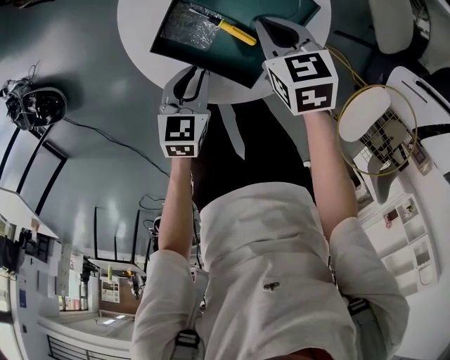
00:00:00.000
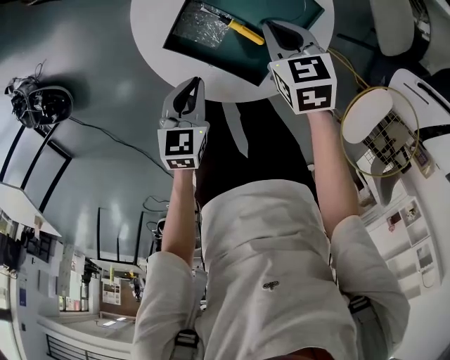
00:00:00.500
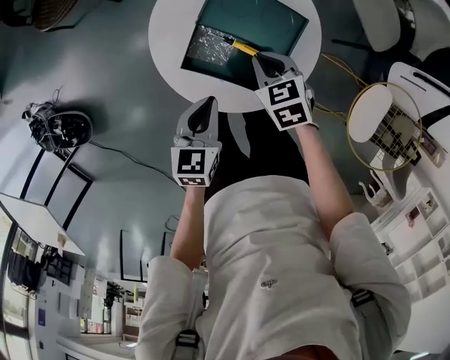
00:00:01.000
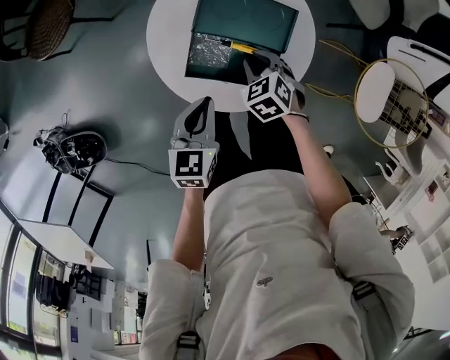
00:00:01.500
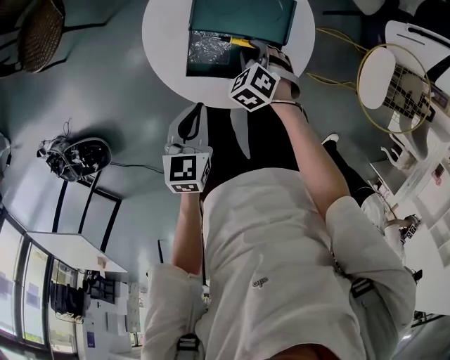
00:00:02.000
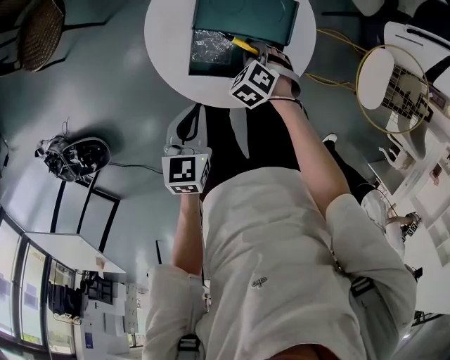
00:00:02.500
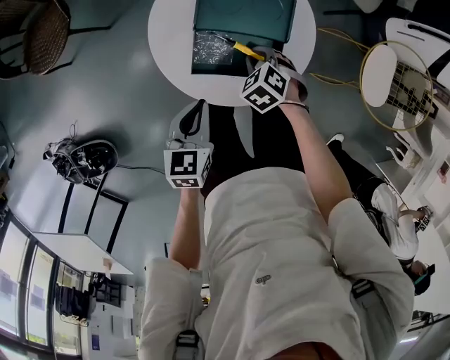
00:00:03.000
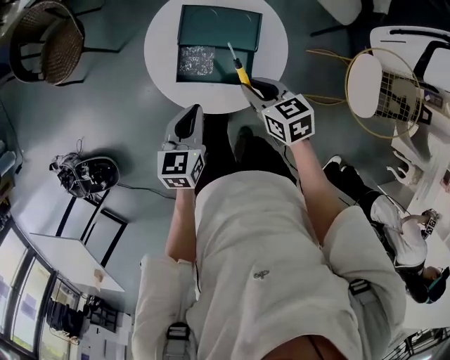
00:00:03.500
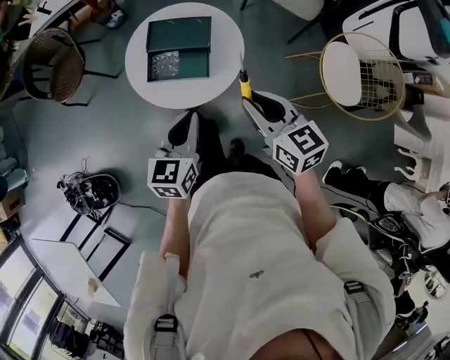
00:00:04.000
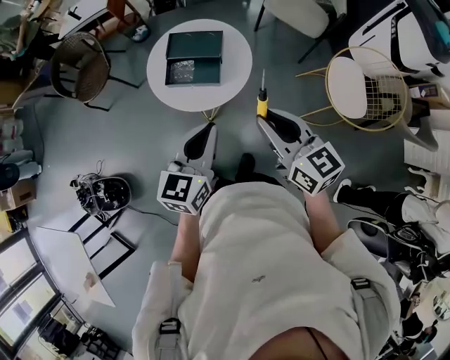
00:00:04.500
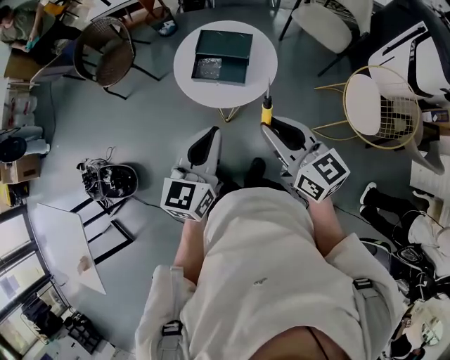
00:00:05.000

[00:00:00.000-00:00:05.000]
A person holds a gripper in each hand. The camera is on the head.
00:00:00.000 to 00:00:02.500: The left gripper shifts some 10 cm upward. The right gripper goes about 5 cm downward, and swivels about 40 degrees.
00:00:02.500 to 00:00:05.000: Both grippers travel together upward, approximately 35 cm. The left gripper rotates some 30 degrees, while the right gripper tips its fingers upward by approximately 60 degrees.

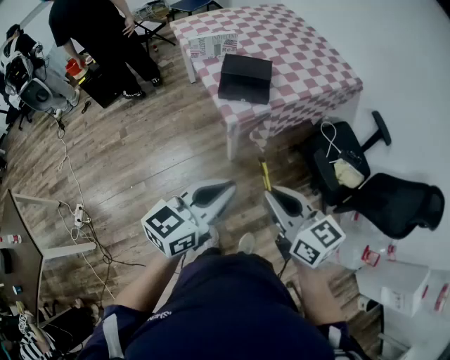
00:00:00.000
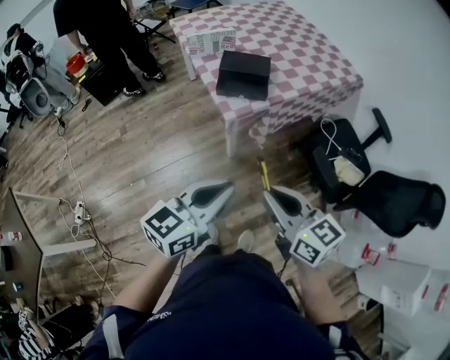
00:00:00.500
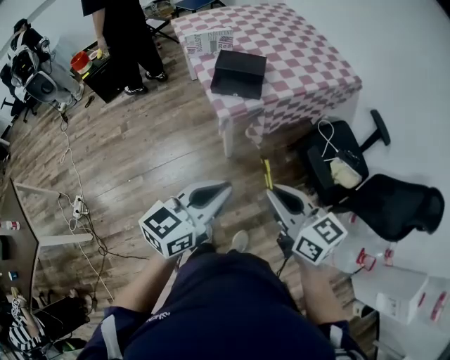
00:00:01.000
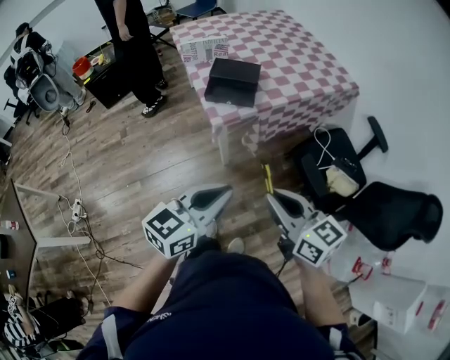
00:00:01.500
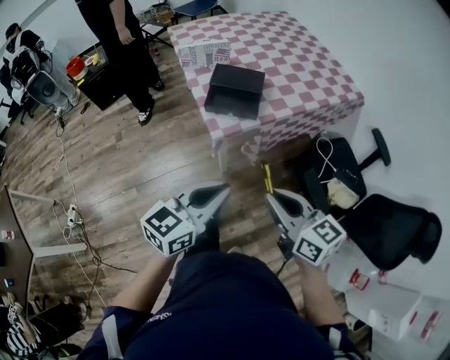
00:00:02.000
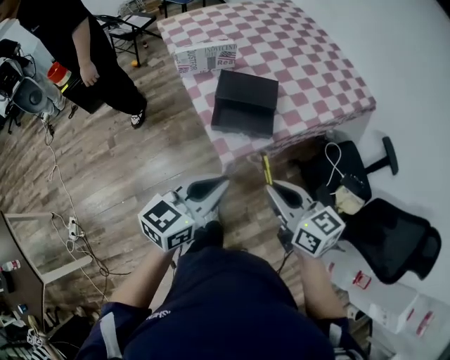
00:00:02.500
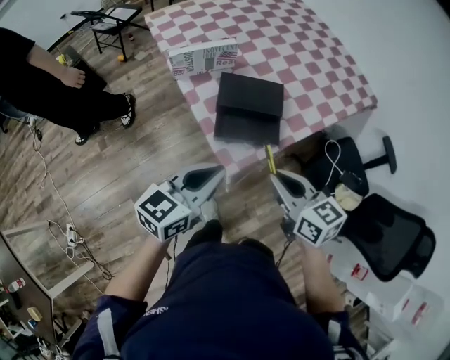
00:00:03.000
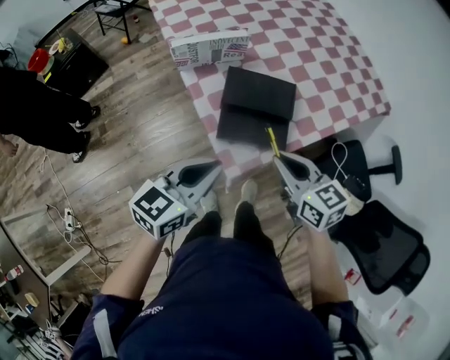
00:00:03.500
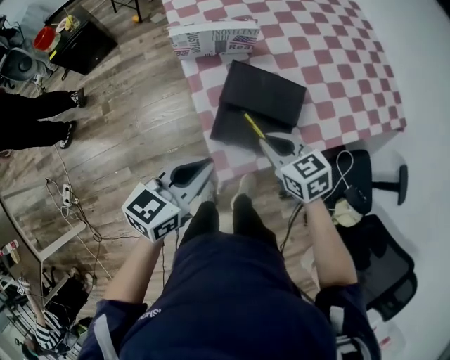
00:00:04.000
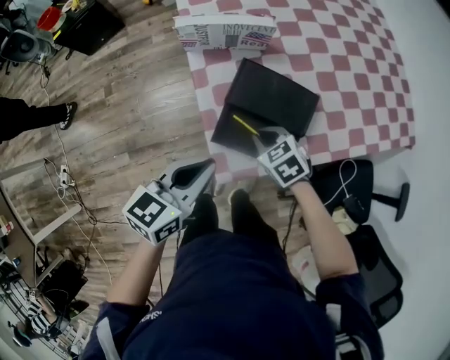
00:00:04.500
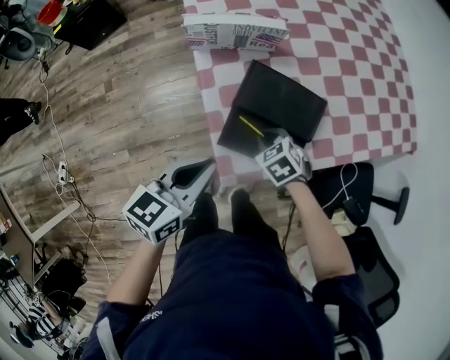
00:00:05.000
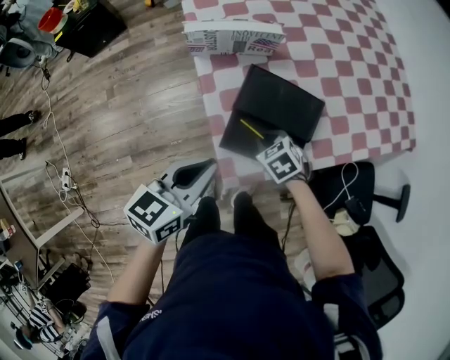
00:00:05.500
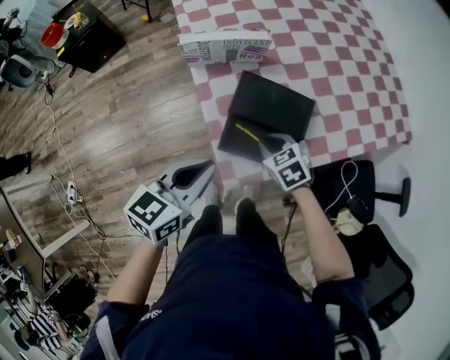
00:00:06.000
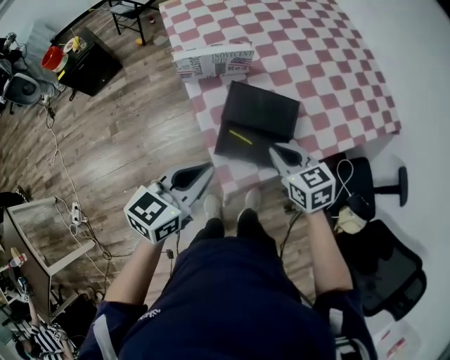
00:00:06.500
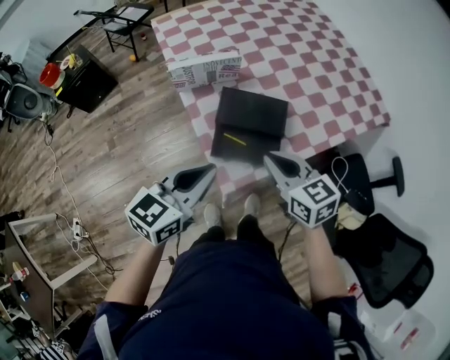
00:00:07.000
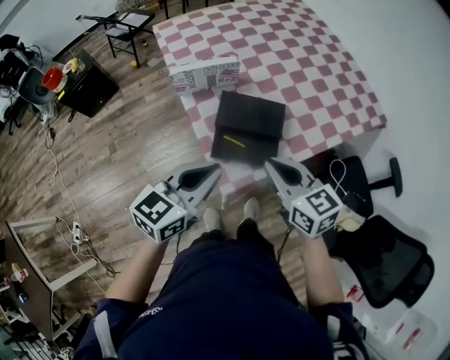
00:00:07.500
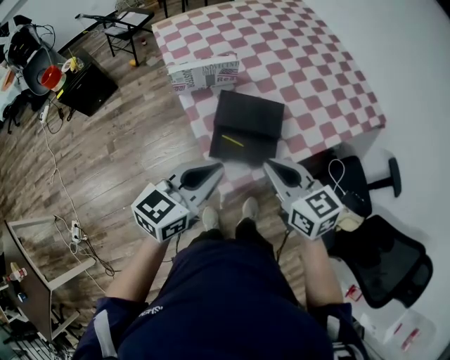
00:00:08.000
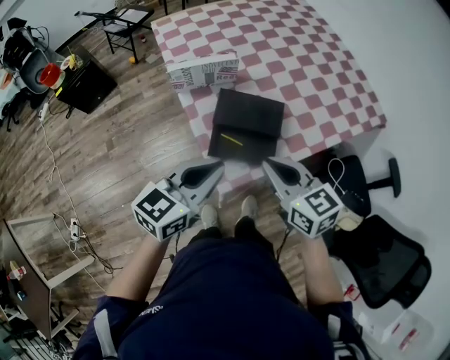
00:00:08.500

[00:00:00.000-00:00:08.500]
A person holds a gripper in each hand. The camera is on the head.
00:00:00.000 to 00:00:02.000: Both grippers move forward and to the right, about 10 cm.
00:00:02.000 to 00:00:04.000: The right gripper goes some 40 cm forward and downward, and swivels some 30 degrees, while the left gripper moves forward, approximately 35 cm.
00:00:04.000 to 00:00:06.500: The right gripper reaches roughly 15 cm downward, then returns.
00:00:06.500 to 00:00:08.500: The left gripper changes place by approximately 5 cm, while the right gripper is displaced upward and backward by some 15 cm.

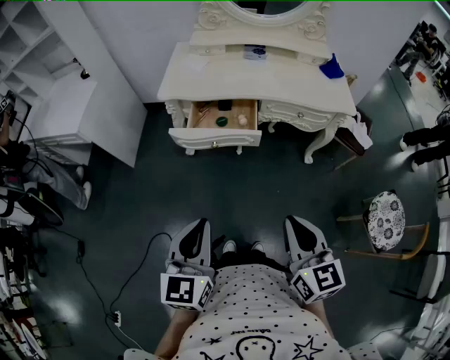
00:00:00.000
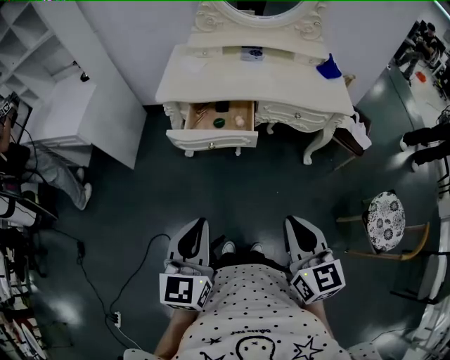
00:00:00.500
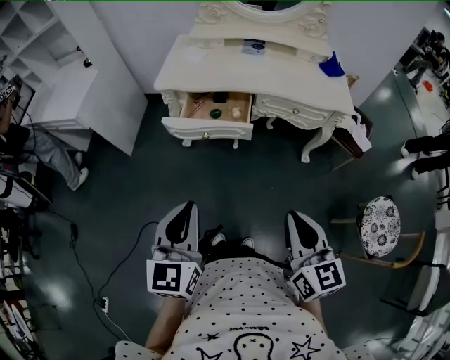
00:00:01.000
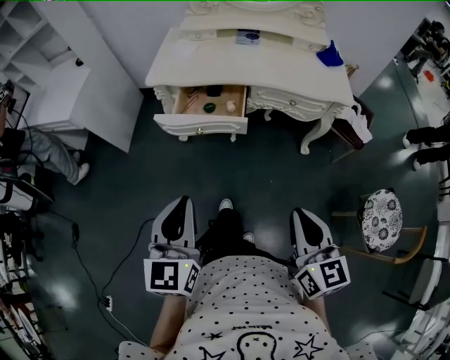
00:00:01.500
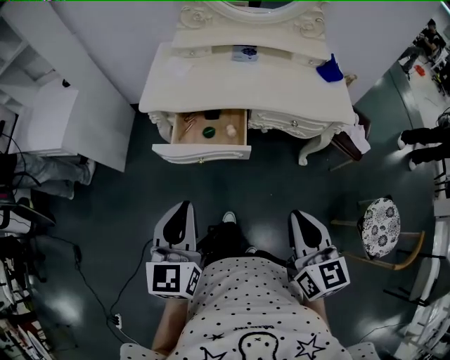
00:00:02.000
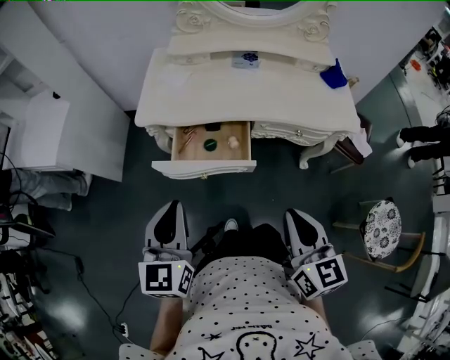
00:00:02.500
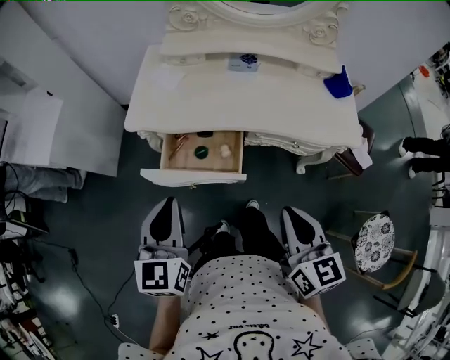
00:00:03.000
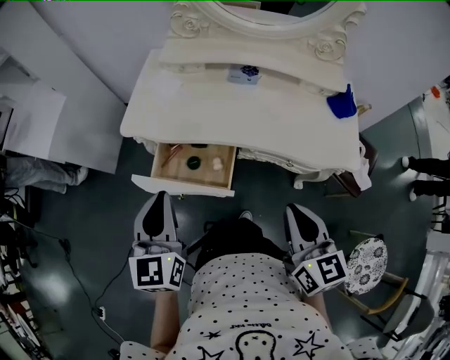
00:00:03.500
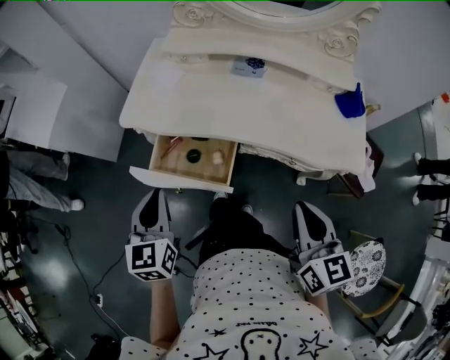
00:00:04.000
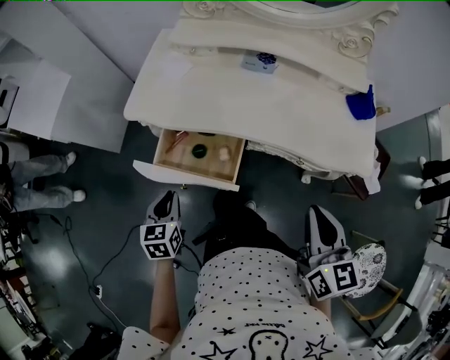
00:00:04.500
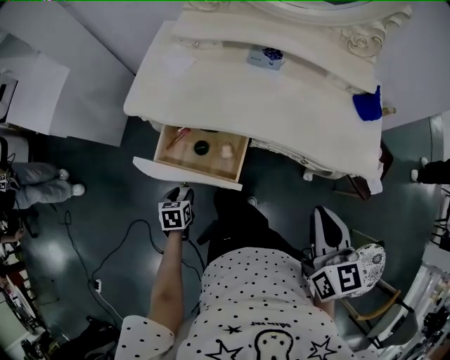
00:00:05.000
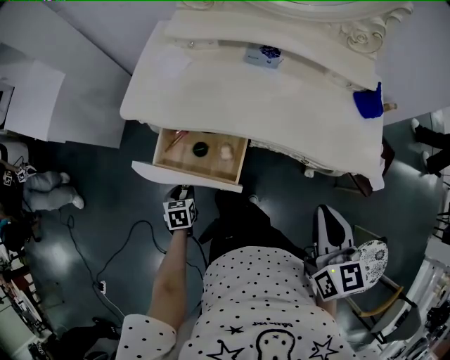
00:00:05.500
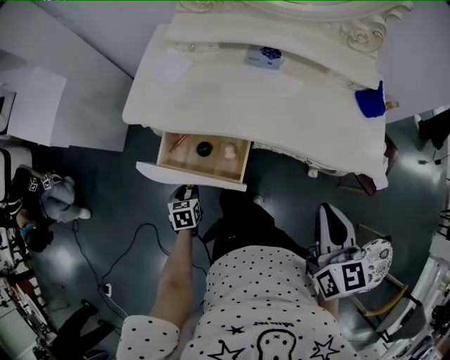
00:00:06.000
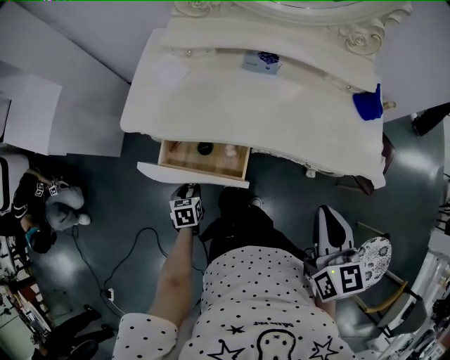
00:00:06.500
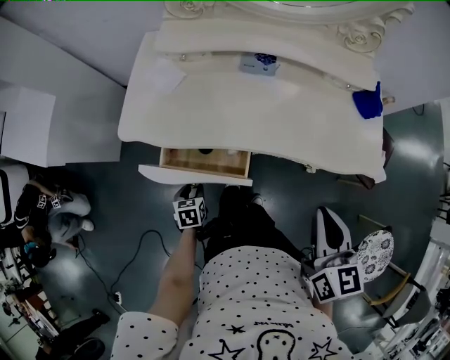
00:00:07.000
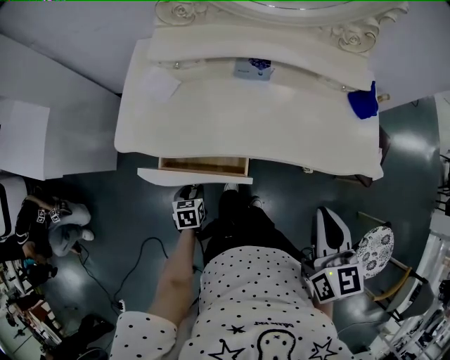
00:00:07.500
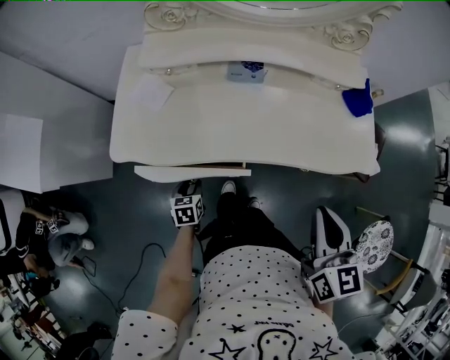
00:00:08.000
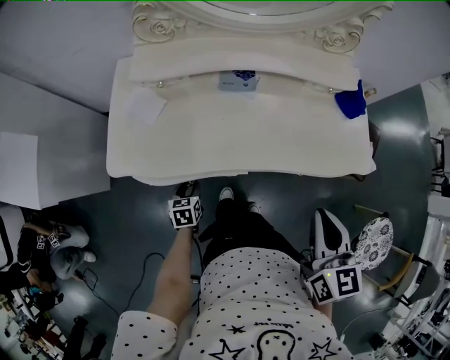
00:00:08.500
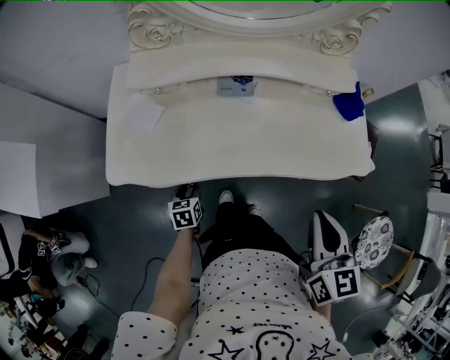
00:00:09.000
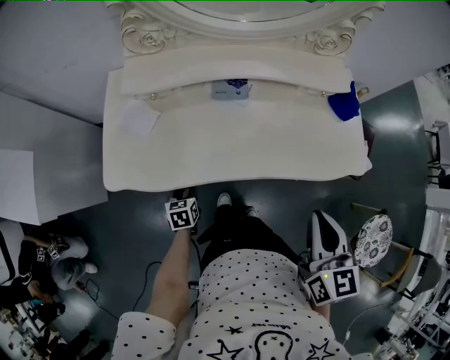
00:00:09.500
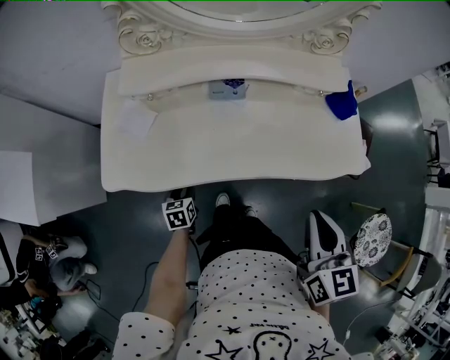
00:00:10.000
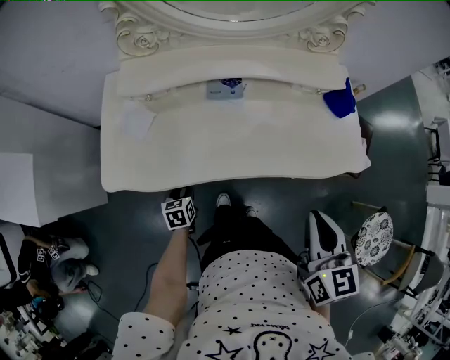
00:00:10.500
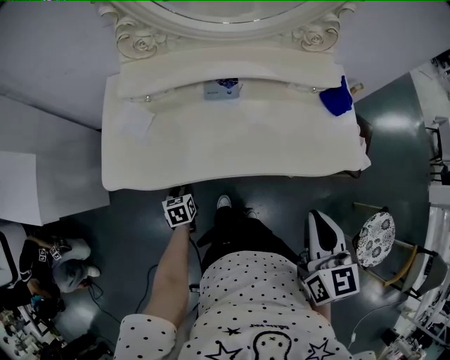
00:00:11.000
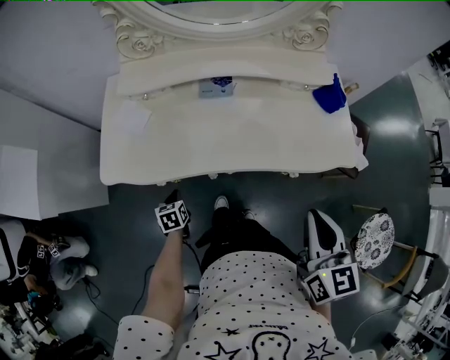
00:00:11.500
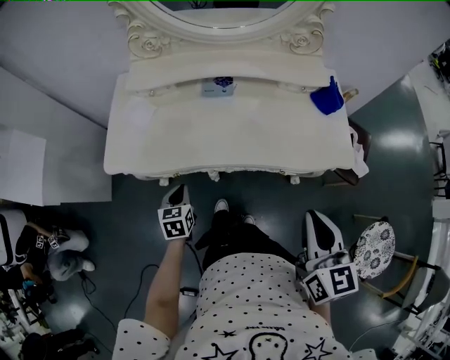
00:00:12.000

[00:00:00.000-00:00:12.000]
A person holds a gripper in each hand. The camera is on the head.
00:00:00.000 to 00:00:02.000: The left gripper goes roughly 15 cm forward, while the right gripper travels forward and to the right by about 10 cm.
00:00:02.000 to 00:00:04.000: The left gripper is displaced forward by about 20 cm. Meanwhile the right gripper heads forward and to the right, covering roughly 25 cm.
00:00:04.000 to 00:00:06.000: The left gripper is displaced downward by about 30 cm, points its fingers about 30 degrees further downward, and opens.
00:00:06.000 to 00:00:08.000: The left gripper goes approximately 10 cm forward. Meanwhile the right gripper shifts by some 5 cm.
00:00:08.000 to 00:00:10.000: The left gripper shifts approximately 5 cm forward.
00:00:10.000 to 00:00:12.000: The left gripper travels upward and backward by some 10 cm, and closes its fingers; the right gripper heads backward and to the right, covering roughly 10 cm.

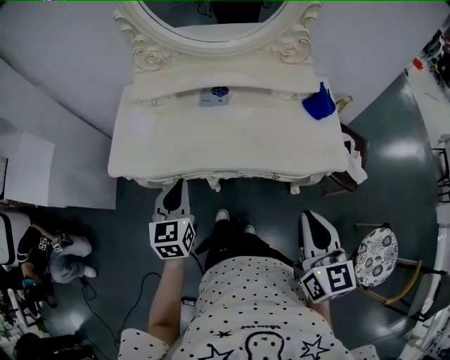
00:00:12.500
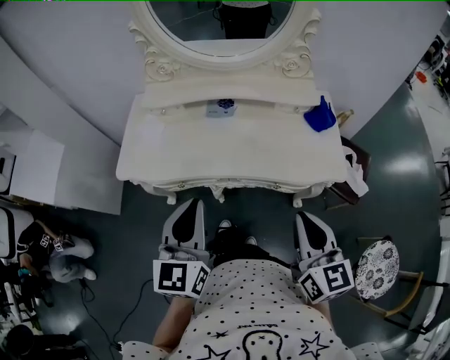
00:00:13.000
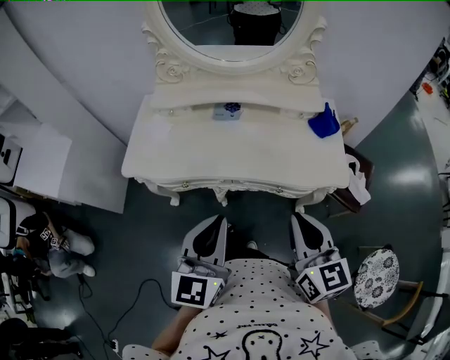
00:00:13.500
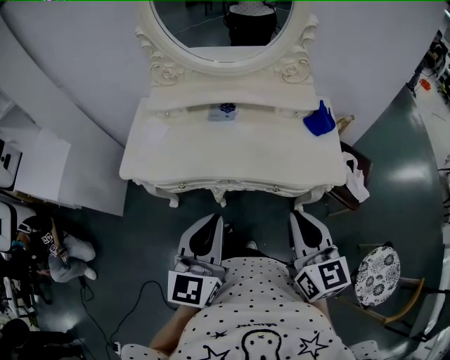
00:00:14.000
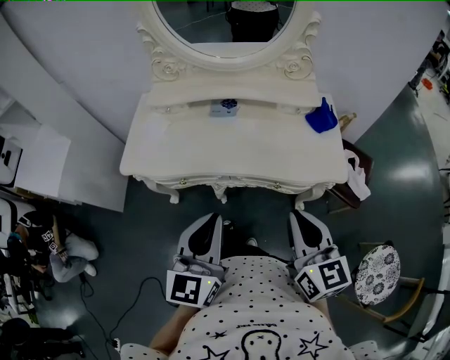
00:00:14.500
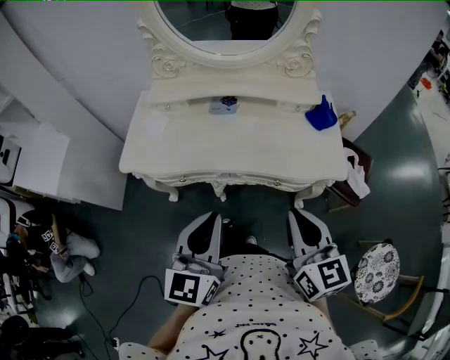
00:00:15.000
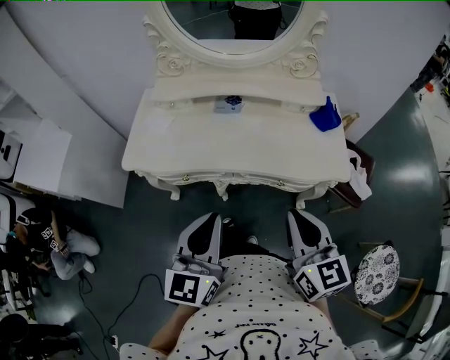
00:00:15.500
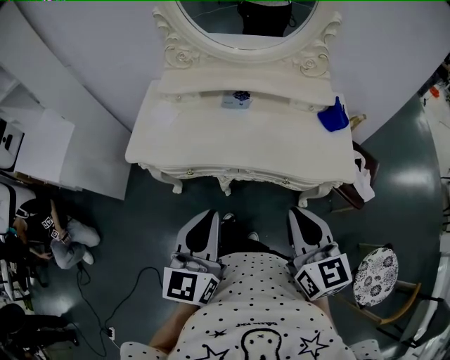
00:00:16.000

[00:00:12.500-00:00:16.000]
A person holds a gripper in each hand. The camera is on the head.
00:00:12.500 to 00:00:14.500: The left gripper moves backward, upward and to the right, approximately 20 cm.
00:00:14.500 to 00:00:16.000: The grippers stay close to where they were, moving slightly.
